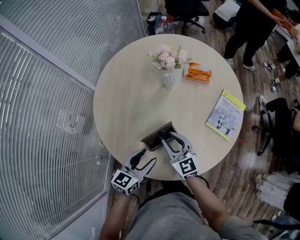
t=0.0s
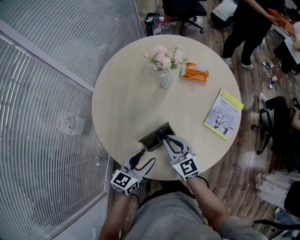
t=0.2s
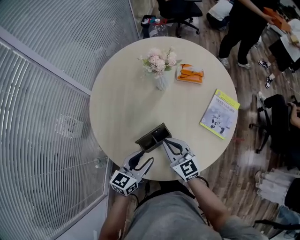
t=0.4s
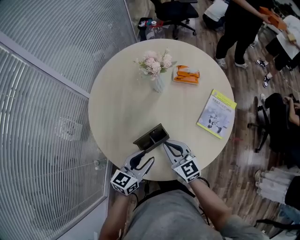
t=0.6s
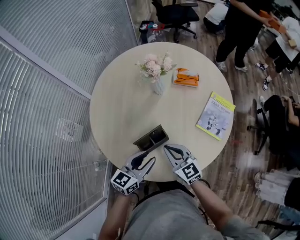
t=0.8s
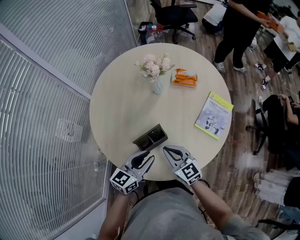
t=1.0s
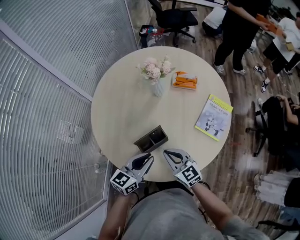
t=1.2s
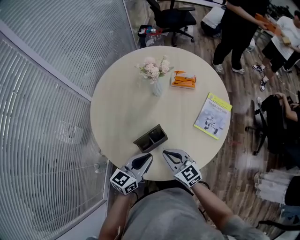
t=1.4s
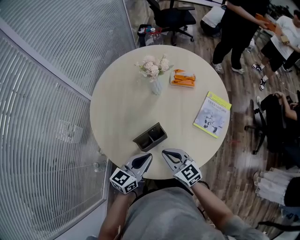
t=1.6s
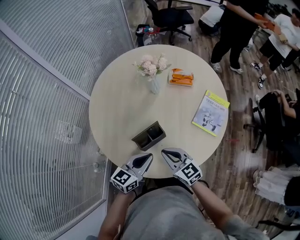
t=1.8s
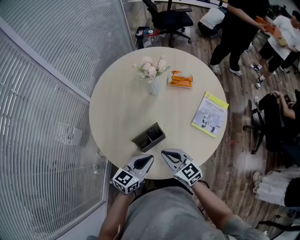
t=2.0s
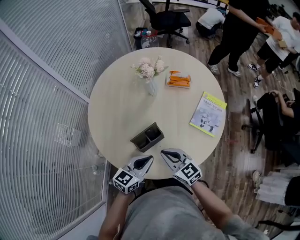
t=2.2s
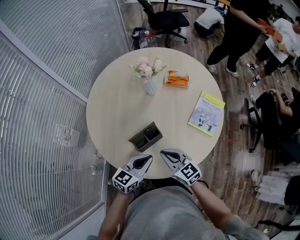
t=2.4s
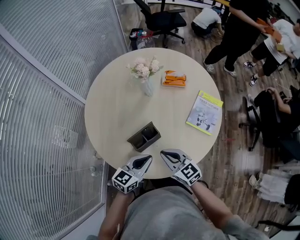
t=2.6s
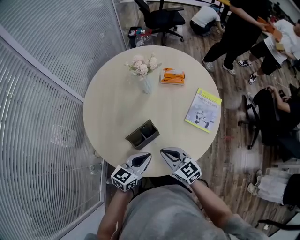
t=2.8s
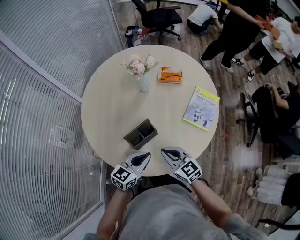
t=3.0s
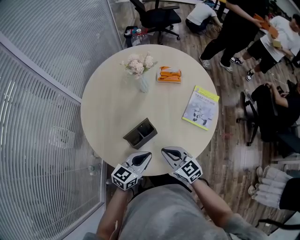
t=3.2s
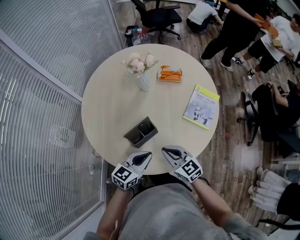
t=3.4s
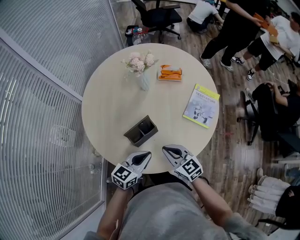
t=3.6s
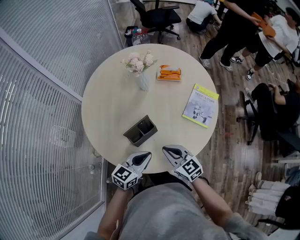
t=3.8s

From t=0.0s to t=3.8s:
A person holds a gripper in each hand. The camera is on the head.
From t=0.0s to t=1.2s: The right gripper heads backward, covering about 5 cm, and closes. The left gripper shifts by roughly 5 cm, and closes.
From t=1.2s to t=2.6s: There are only small adjustments of the grippers.
From t=2.6s to t=3.8s: There are only small adjustments of the grippers.

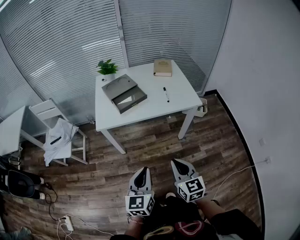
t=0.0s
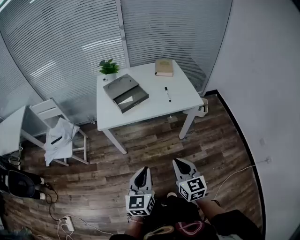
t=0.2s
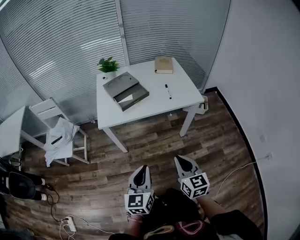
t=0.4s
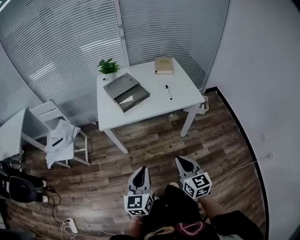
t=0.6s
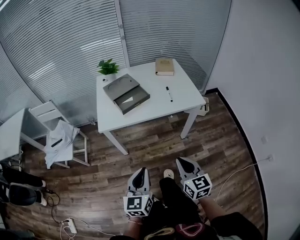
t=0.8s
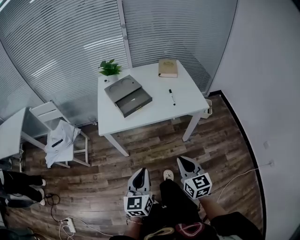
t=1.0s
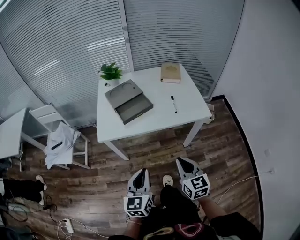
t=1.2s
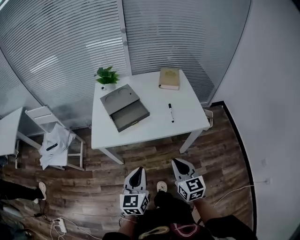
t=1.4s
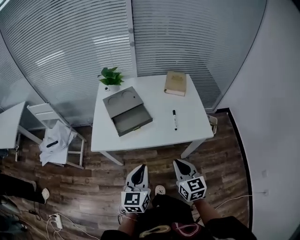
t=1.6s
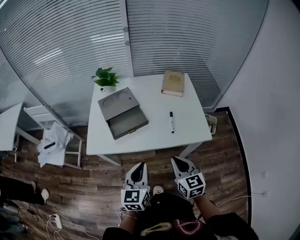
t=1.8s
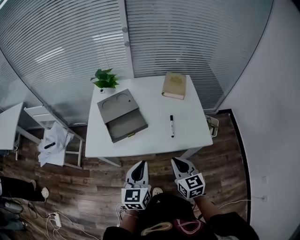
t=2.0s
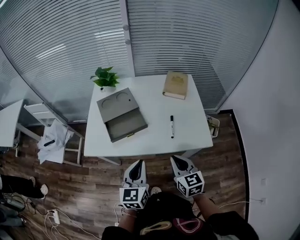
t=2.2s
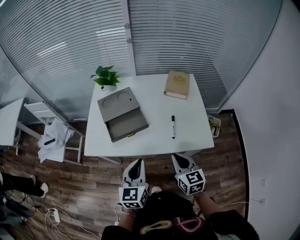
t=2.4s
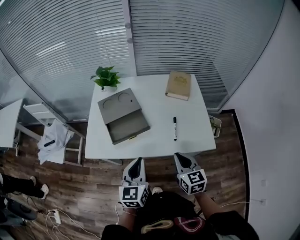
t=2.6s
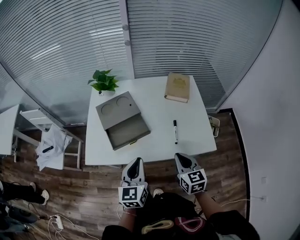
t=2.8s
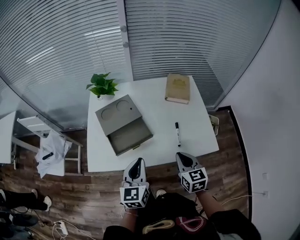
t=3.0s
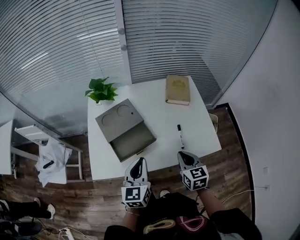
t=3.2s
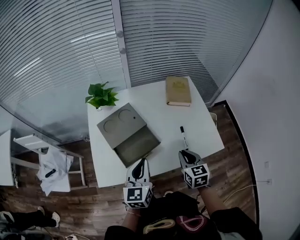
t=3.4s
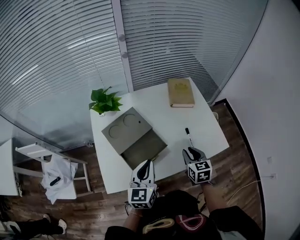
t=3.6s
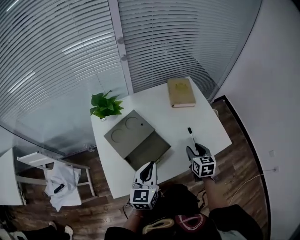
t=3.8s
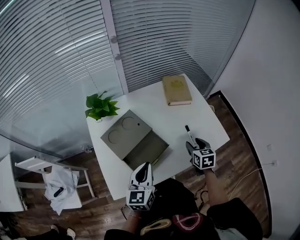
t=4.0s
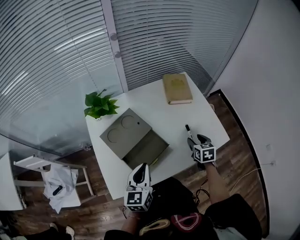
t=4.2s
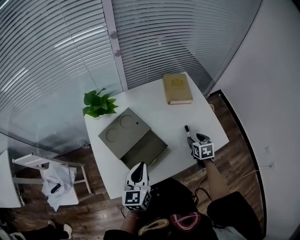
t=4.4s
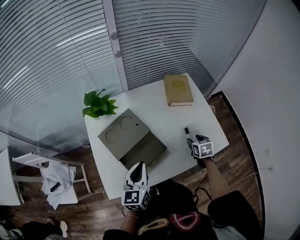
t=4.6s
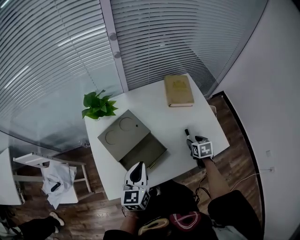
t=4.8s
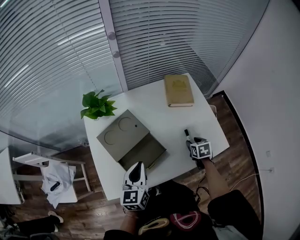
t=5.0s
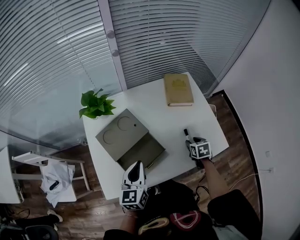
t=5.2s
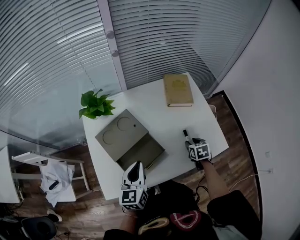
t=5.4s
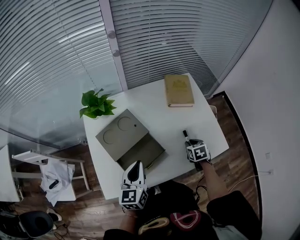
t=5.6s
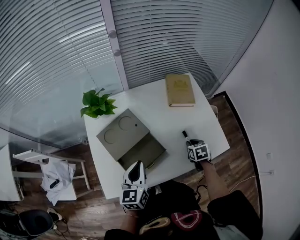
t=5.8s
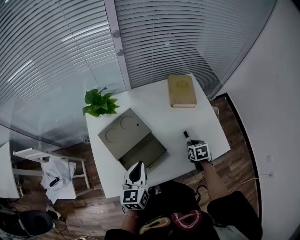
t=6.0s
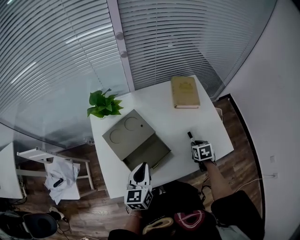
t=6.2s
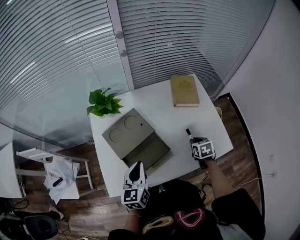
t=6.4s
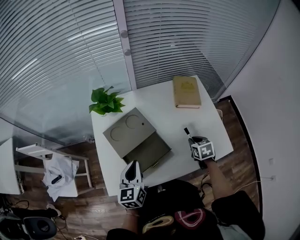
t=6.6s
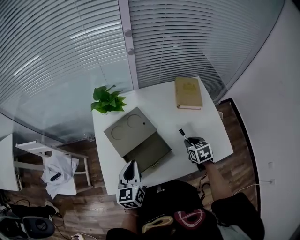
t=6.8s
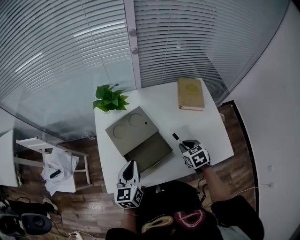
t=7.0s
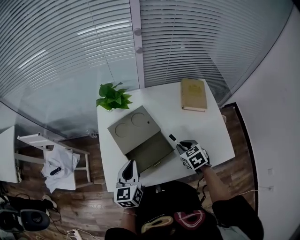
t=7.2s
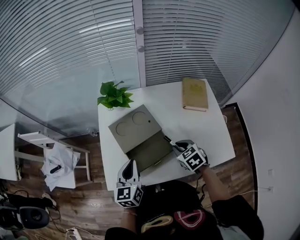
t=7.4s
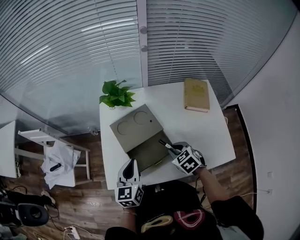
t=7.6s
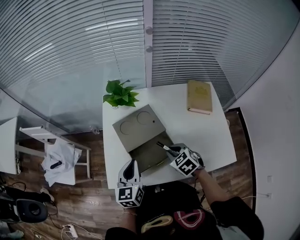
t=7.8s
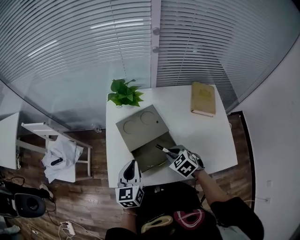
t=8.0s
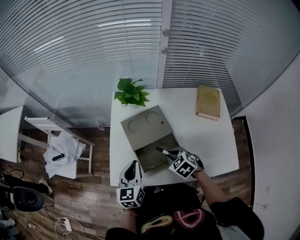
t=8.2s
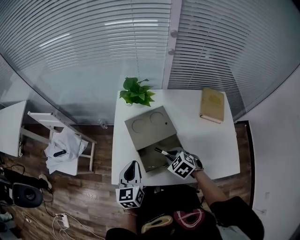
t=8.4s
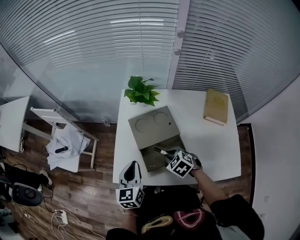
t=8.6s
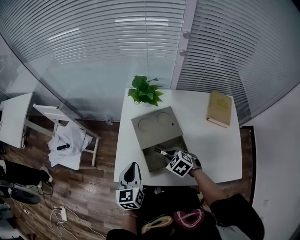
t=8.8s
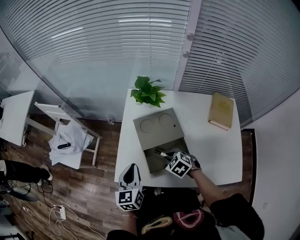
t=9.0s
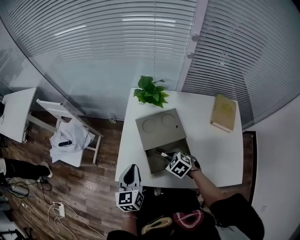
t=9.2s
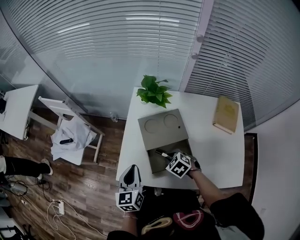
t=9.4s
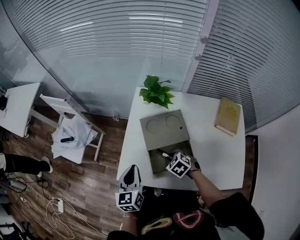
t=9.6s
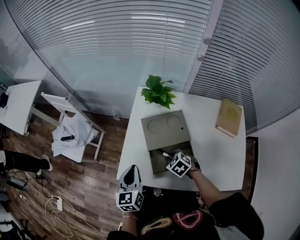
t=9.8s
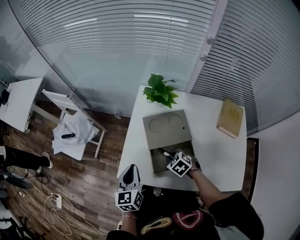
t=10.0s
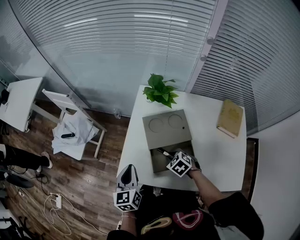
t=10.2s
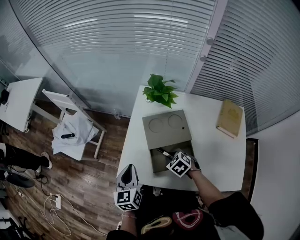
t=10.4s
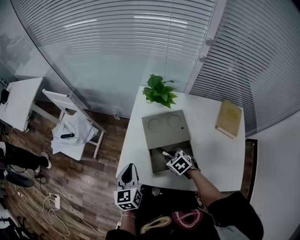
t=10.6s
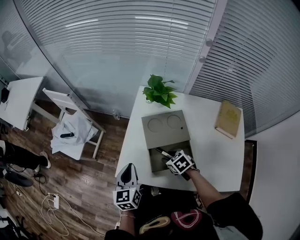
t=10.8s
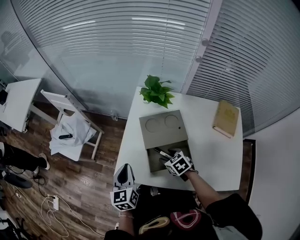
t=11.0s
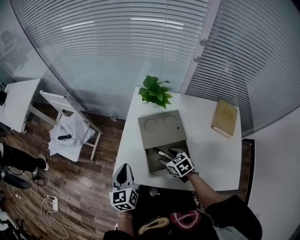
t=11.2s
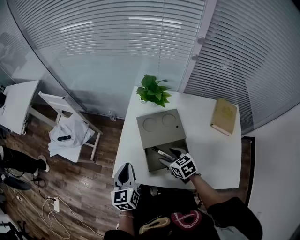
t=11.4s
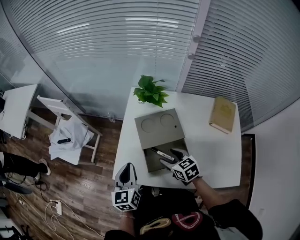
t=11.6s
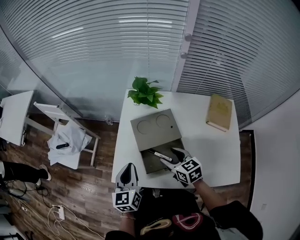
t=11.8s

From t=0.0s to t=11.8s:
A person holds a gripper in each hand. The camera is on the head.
From t=0.0s to t=1.4s: The two grippers go about 15 cm forward.
From t=1.4s to t=3.0s: Both grippers travel together forward, about 20 cm.
From t=3.0s to t=4.4s: The left gripper heads to the left and forward, covering some 15 cm, while the right gripper travels forward and downward by approximately 15 cm, turns by roughly 30 degrees, and opens.
From t=4.4s to t=6.0s: The right gripper closes its fingers.
From t=6.0s to t=7.4s: The left gripper goes roughly 5 cm to the left; the right gripper heads to the left and upward, covering approximately 20 cm, and changes its angle by some 40 degrees.
From t=7.4s to t=8.8s: The right gripper heads to the left, covering some 15 cm, and swivels approximately 30 degrees, while the left gripper moves to the left, roughly 5 cm.
From t=8.8s to t=10.4s: There are only small adjustments of the grippers.
From t=10.4s to t=11.8s: The left gripper moves approximately 5 cm, while the right gripper moves upward, about 10 cm, turns by approximately 40 degrees, and opens.

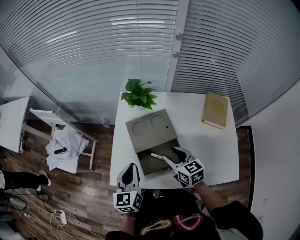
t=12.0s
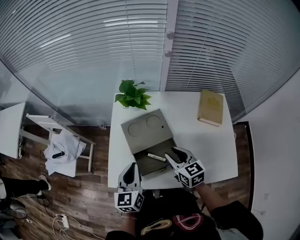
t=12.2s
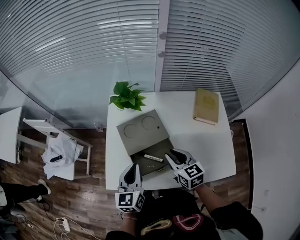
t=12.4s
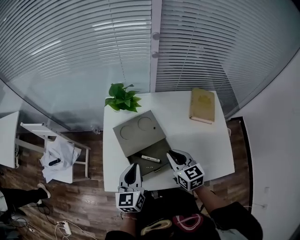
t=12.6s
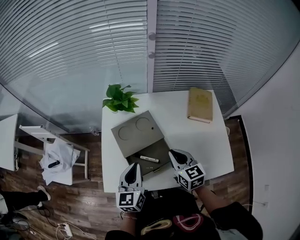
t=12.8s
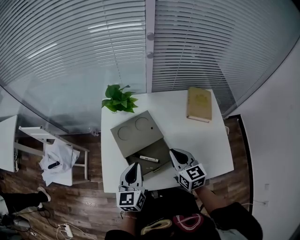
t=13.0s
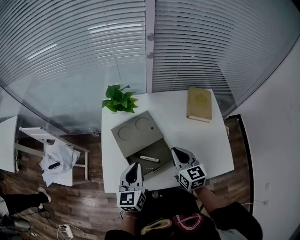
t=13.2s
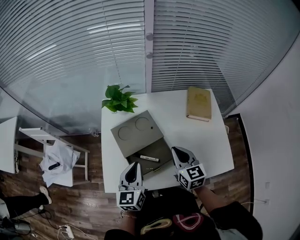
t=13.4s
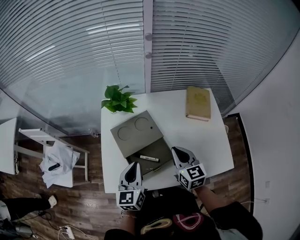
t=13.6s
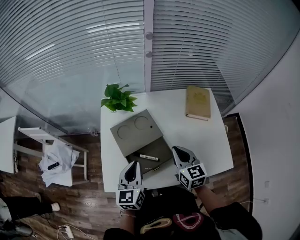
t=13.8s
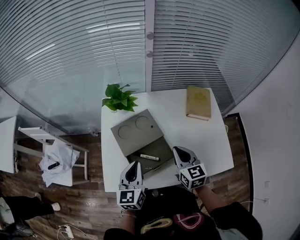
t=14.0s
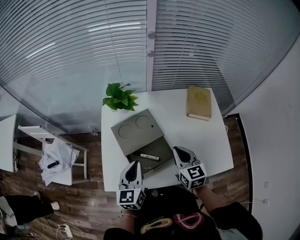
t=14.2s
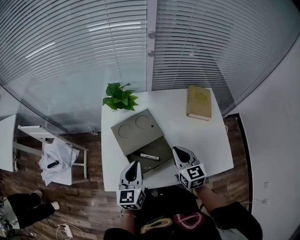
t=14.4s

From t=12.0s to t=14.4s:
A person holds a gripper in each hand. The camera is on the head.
From t=12.0s to t=13.2s: The two grippers go some 10 cm to the right. The right gripper swivels roughly 20 degrees, and closes its fingers.
From t=13.2s to t=14.4s: Both grippers stay about where they are.

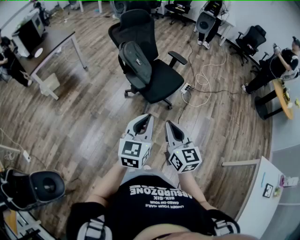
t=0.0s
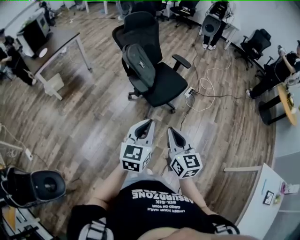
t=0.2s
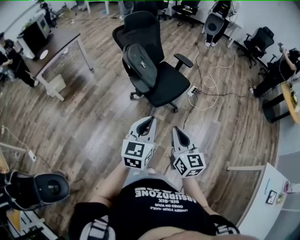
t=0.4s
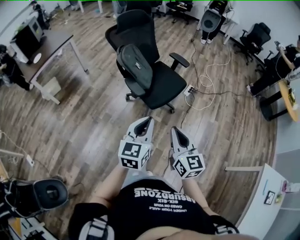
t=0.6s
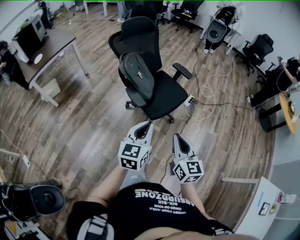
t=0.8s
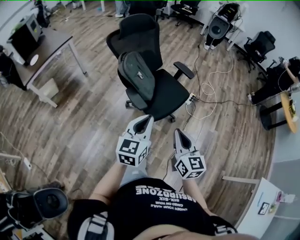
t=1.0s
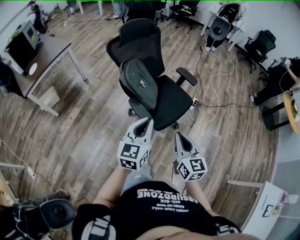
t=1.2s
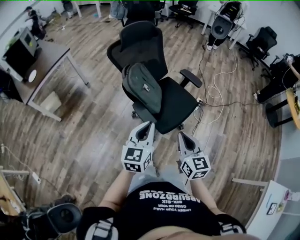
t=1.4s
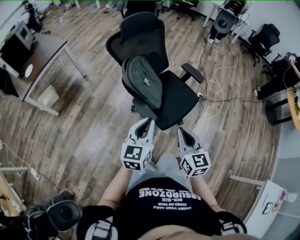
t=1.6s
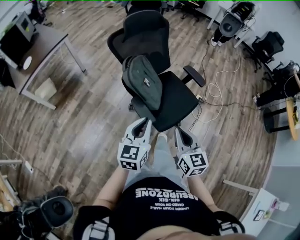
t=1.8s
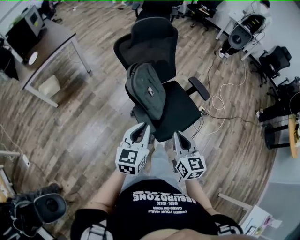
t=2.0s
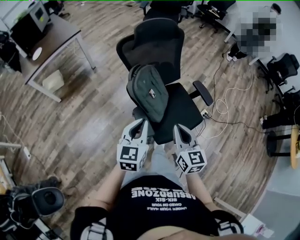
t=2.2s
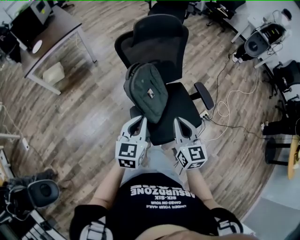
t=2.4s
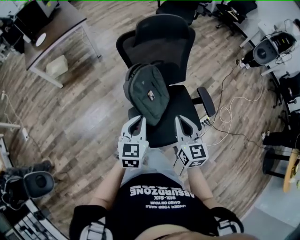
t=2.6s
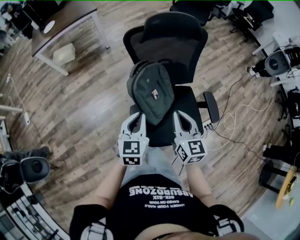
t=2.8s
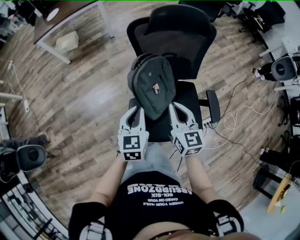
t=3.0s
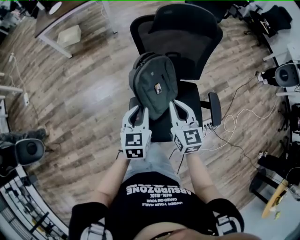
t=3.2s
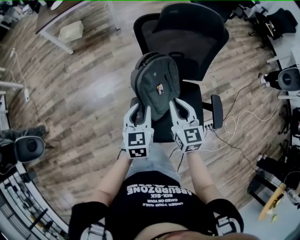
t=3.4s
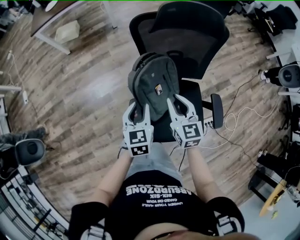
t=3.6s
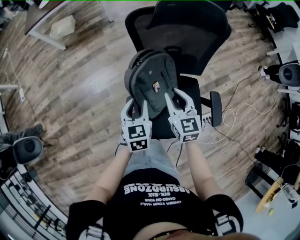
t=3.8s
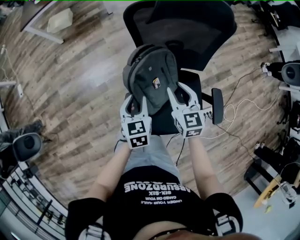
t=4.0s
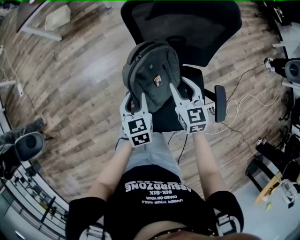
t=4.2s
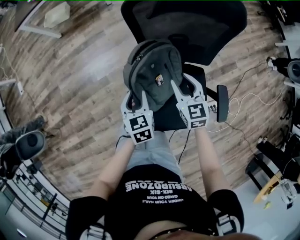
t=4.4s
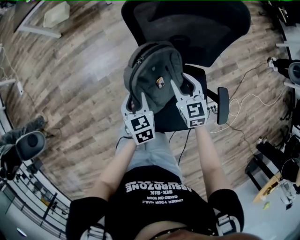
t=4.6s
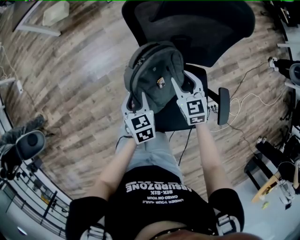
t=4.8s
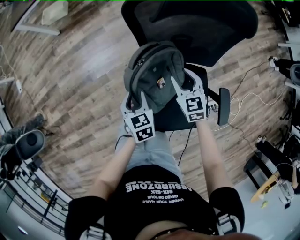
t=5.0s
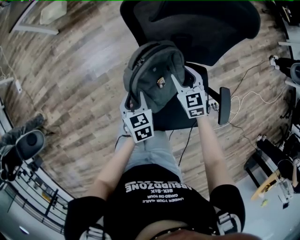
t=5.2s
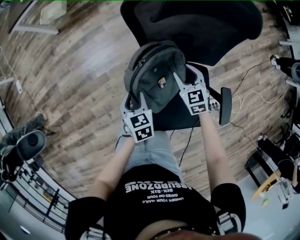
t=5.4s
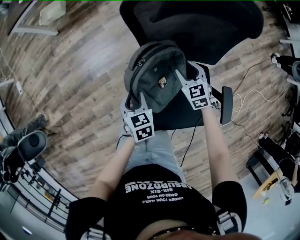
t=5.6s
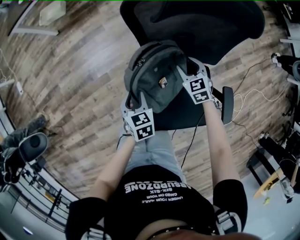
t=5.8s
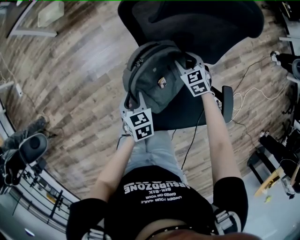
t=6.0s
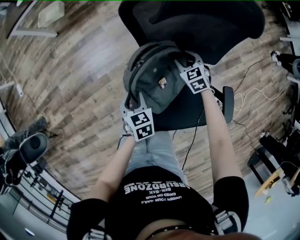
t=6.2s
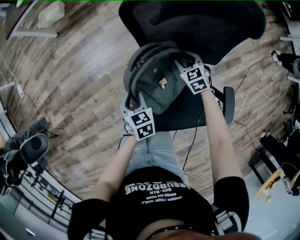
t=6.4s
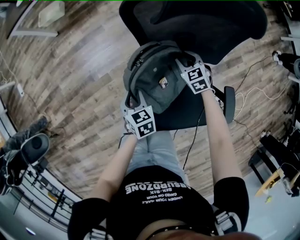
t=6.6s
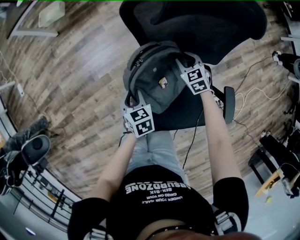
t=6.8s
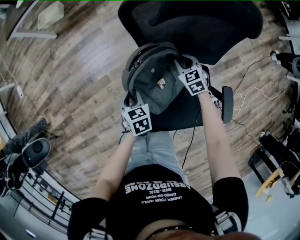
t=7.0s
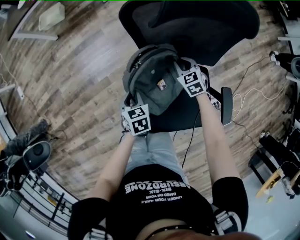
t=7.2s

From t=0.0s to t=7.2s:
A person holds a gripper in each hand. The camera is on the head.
From t=0.0s to t=1.4s: Both grippers travel together forward, some 30 cm.
From t=1.4s to t=2.8s: The right gripper moves approximately 35 cm, and swivels about 30 degrees. The left gripper moves some 30 cm, and swivels approximately 40 degrees.
From t=2.8s to t=4.4s: The right gripper travels forward and downward by some 25 cm, changes its angle by some 30 degrees, and opens its fingers. Meanwhile the left gripper moves downward and forward, approximately 20 cm, turns by approximately 30 degrees, and opens its fingers.
From t=4.4s to t=5.8s: The right gripper is displaced downward and forward by some 15 cm. Meanwhile the left gripper goes approximately 5 cm downward.
From t=5.8s to t=7.2s: The right gripper closes up.
